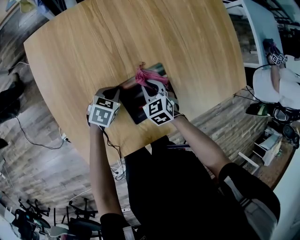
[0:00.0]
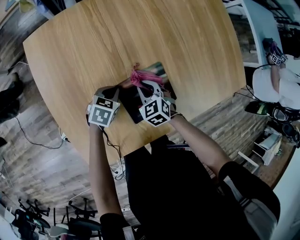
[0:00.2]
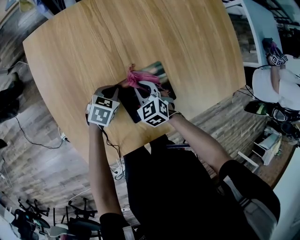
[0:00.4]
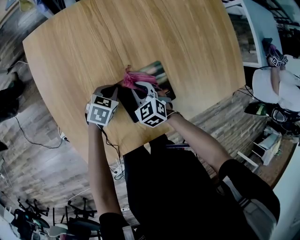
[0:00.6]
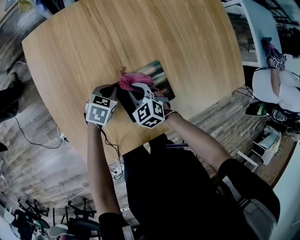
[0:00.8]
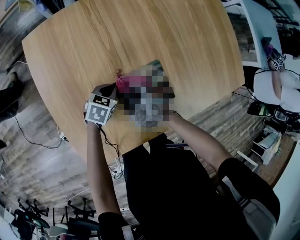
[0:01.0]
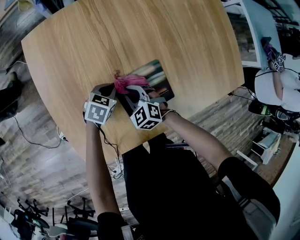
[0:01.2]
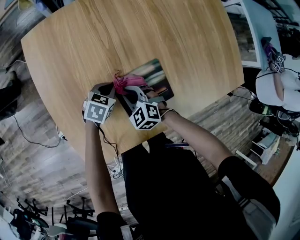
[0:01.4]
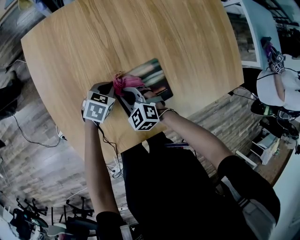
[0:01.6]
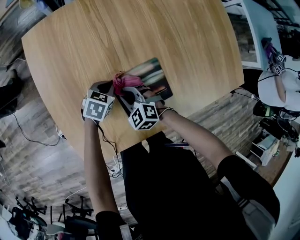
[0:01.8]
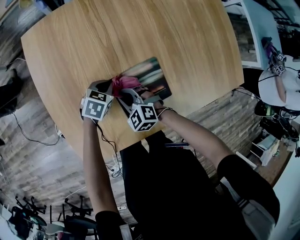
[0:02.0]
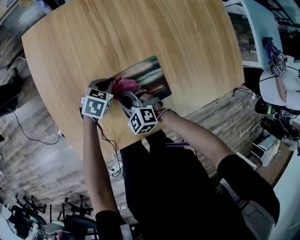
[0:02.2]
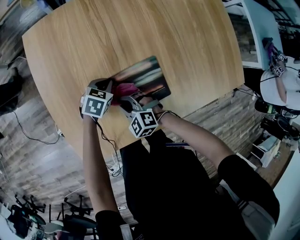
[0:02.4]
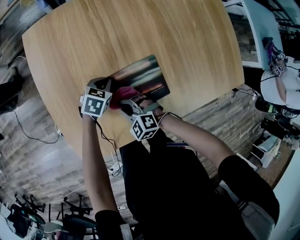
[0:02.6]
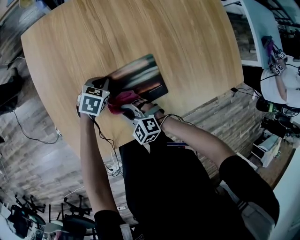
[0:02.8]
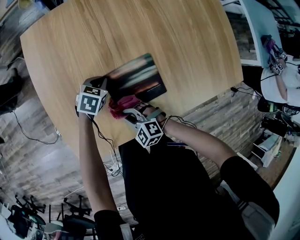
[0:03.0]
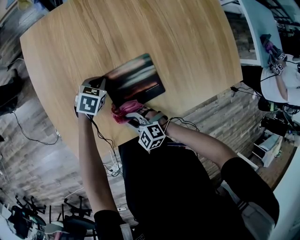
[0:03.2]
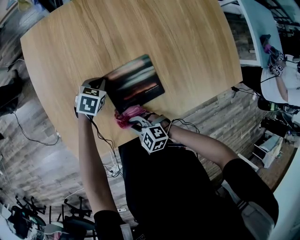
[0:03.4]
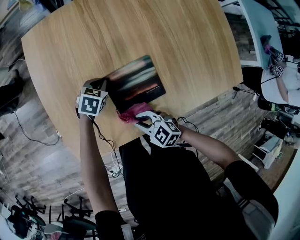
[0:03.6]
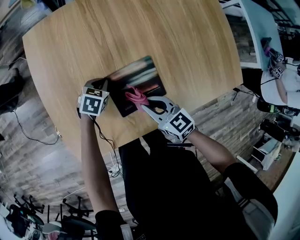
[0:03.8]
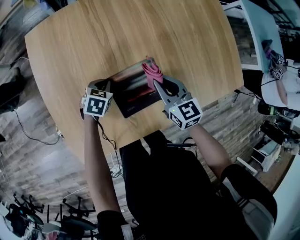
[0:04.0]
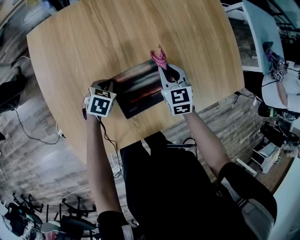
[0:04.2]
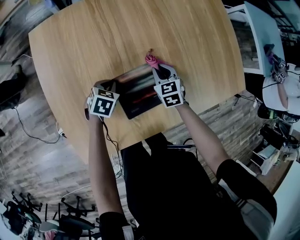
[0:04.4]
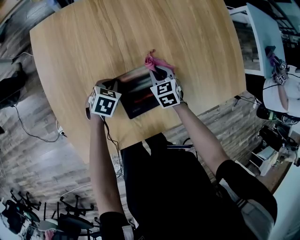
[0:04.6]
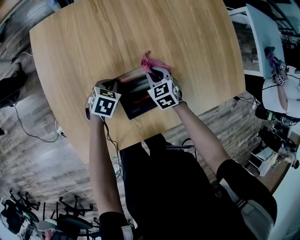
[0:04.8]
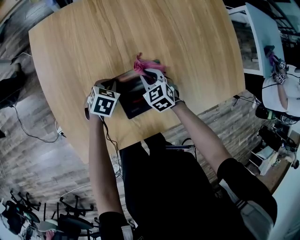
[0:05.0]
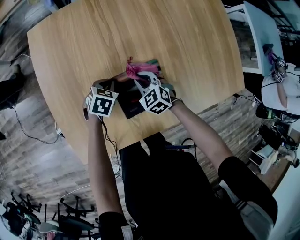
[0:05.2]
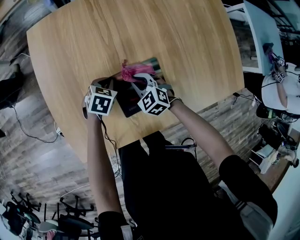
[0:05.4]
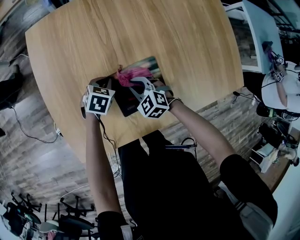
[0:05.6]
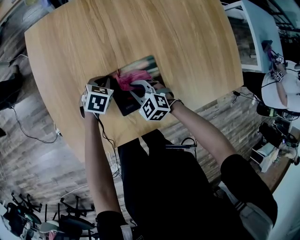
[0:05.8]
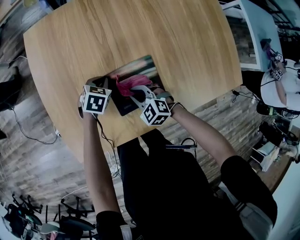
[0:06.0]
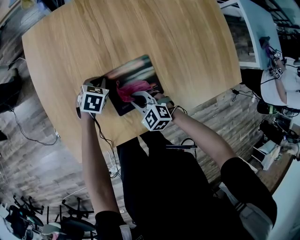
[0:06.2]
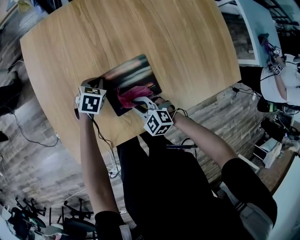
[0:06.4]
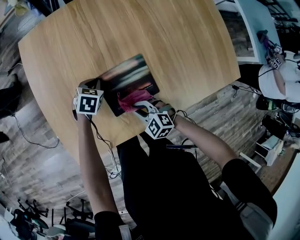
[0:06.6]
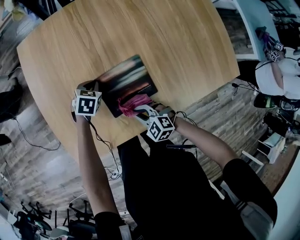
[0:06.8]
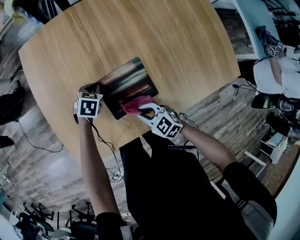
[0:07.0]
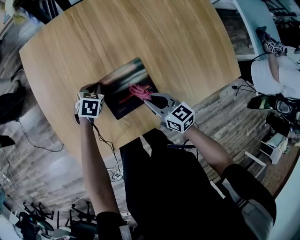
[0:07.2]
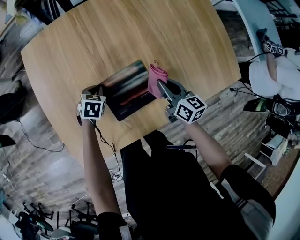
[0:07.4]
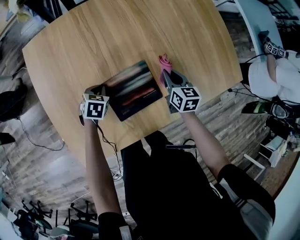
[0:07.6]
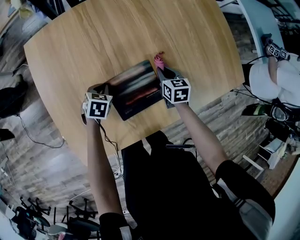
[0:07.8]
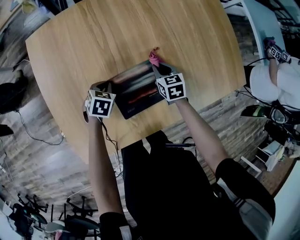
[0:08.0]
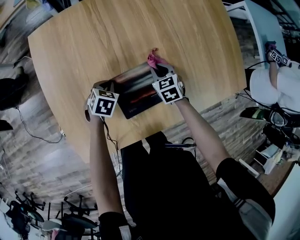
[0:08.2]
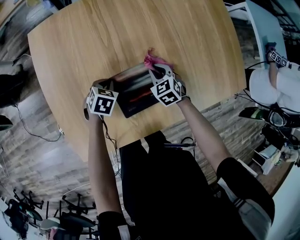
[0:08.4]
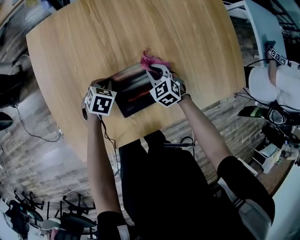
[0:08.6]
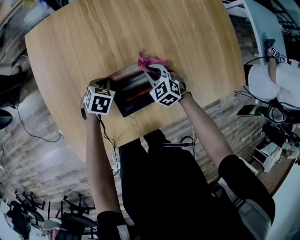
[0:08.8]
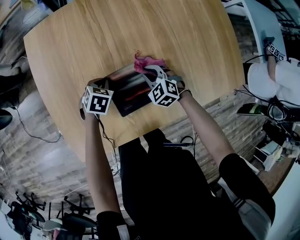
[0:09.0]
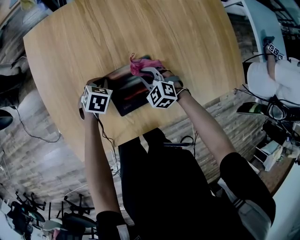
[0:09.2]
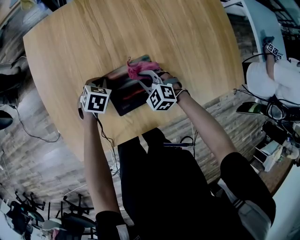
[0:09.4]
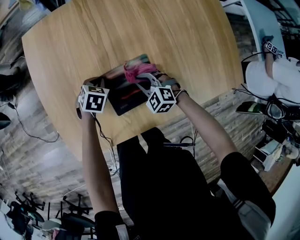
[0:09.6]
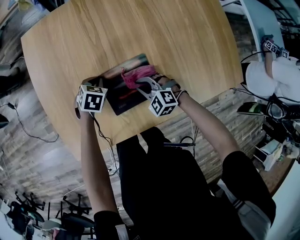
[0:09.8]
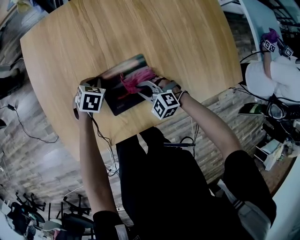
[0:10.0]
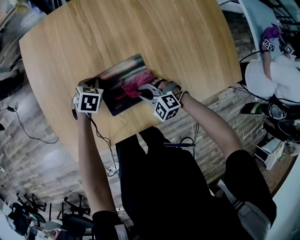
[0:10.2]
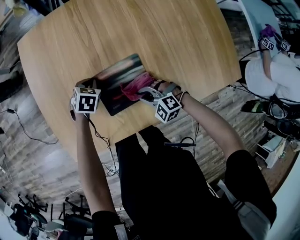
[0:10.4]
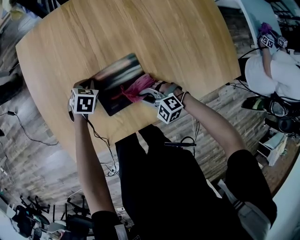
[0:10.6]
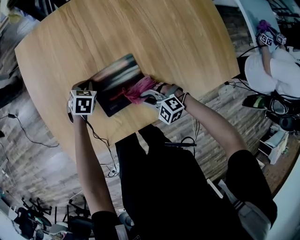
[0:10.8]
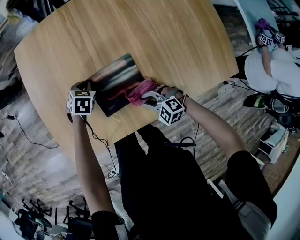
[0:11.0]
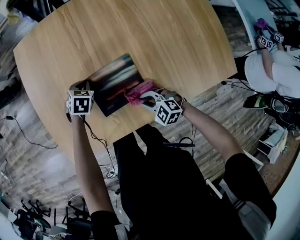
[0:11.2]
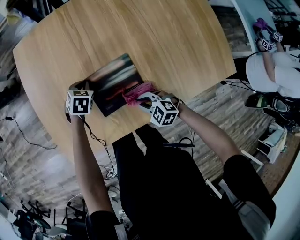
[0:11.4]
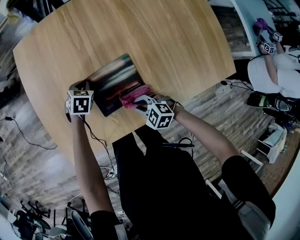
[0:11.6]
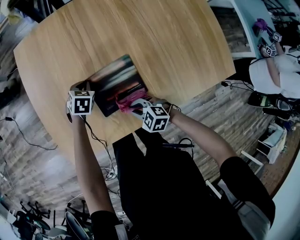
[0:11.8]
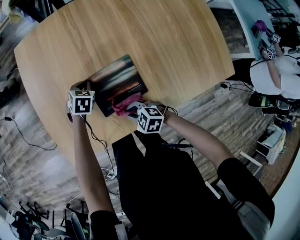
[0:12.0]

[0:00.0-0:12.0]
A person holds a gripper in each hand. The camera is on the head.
0.0 to 1.6 s: The right gripper heads to the left and backward, covering some 10 cm, and swivels roughly 30 degrees.
1.6 to 3.0 s: The right gripper moves backward, roughly 15 cm.
3.0 to 4.4 s: The right gripper travels upward and back again, about 15 cm each way, and swivels approximately 50 degrees.
4.4 to 6.0 s: The right gripper is displaced backward and to the left by roughly 15 cm, and swivels approximately 40 degrees.
6.0 to 7.6 s: The right gripper changes place by approximately 25 cm, and rotates around the line of its fingers by about 60 degrees, clockwise from behind.
7.6 to 9.0 s: The right gripper travels to the left and downward by about 15 cm, and rotates around the line of its fingers by approximately 60 degrees, counterclockwise from behind.
9.0 to 10.4 s: The right gripper travels backward by roughly 15 cm, and turns by approximately 30 degrees.
10.4 to 12.0 s: The right gripper moves to the left, roughly 5 cm, and rotates about 30 degrees.

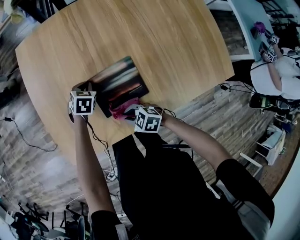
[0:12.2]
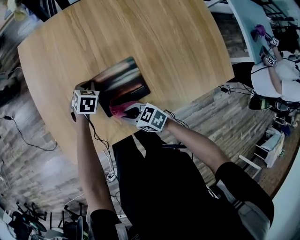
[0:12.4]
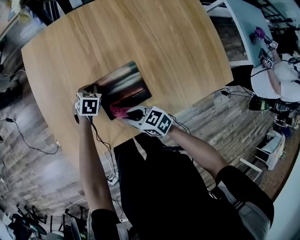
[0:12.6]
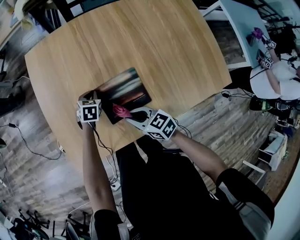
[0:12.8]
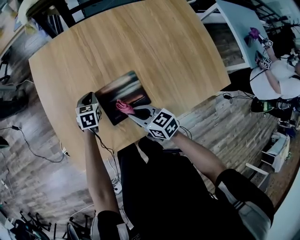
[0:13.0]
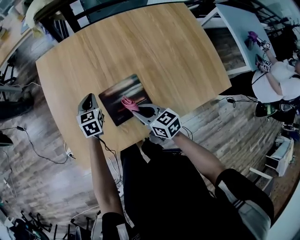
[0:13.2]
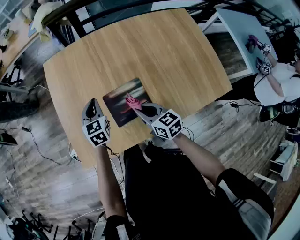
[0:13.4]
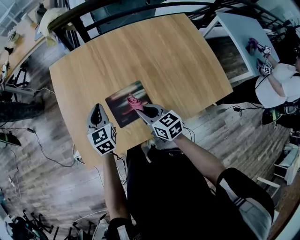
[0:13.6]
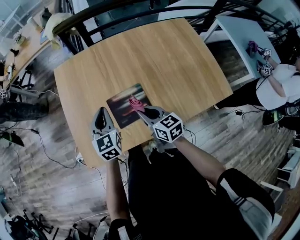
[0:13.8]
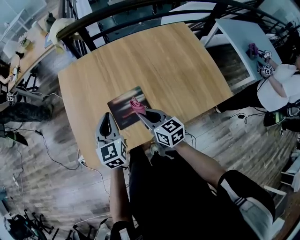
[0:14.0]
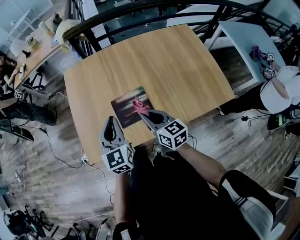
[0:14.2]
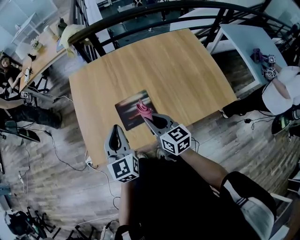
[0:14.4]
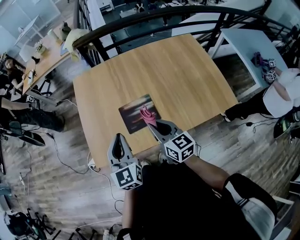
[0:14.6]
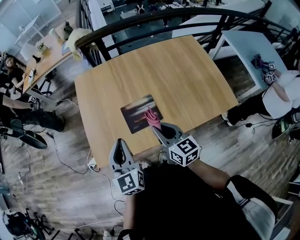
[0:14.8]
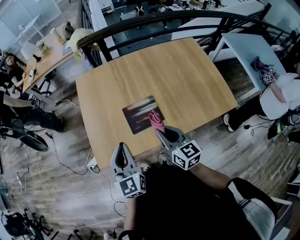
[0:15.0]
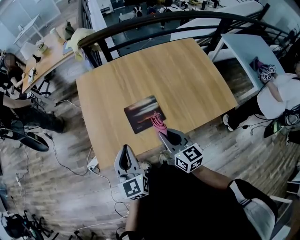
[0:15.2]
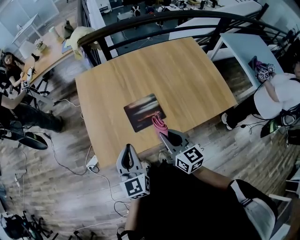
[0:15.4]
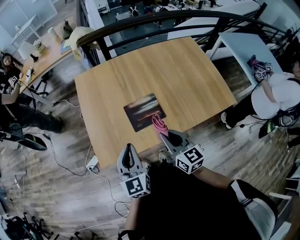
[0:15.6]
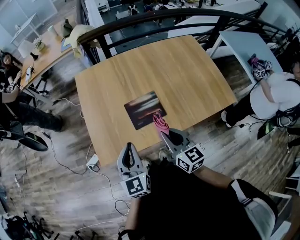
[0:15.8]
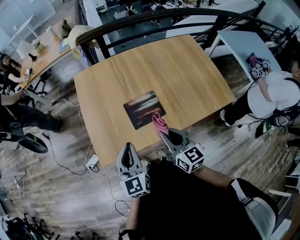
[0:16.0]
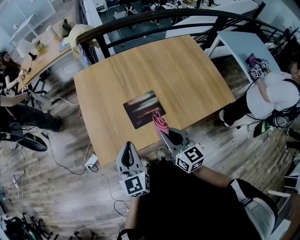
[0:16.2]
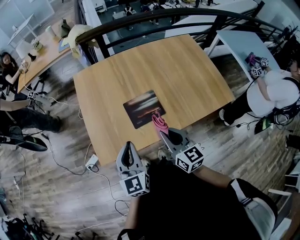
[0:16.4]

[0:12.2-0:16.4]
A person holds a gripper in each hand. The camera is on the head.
12.2 to 13.6 s: The left gripper moves upward, about 25 cm, and tilts its fingers approximately 40 degrees upward; the right gripper travels upward and to the right by roughly 20 cm, and swivels some 50 degrees.
13.6 to 15.0 s: The left gripper goes some 25 cm backward and upward. The right gripper moves upward and backward, some 15 cm.
15.0 to 16.4 s: There are only small adjustments of the grippers.

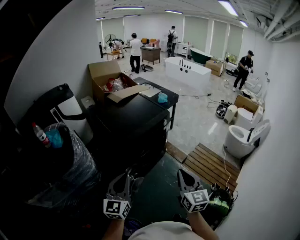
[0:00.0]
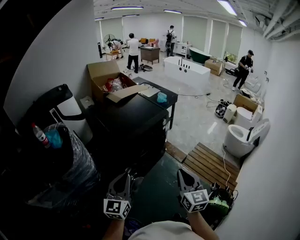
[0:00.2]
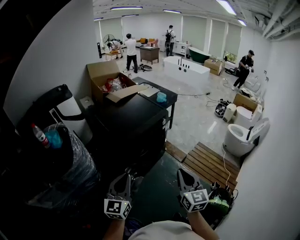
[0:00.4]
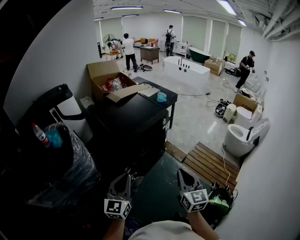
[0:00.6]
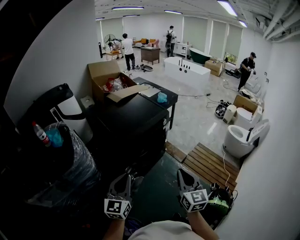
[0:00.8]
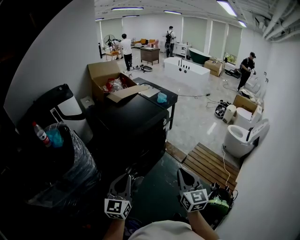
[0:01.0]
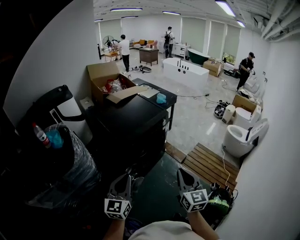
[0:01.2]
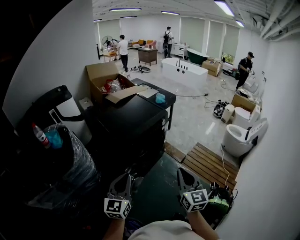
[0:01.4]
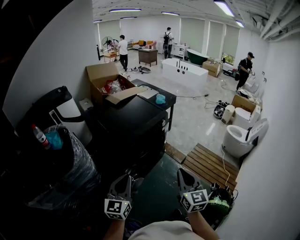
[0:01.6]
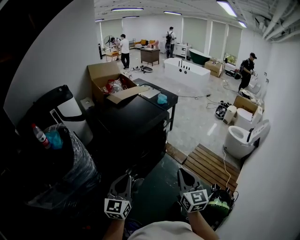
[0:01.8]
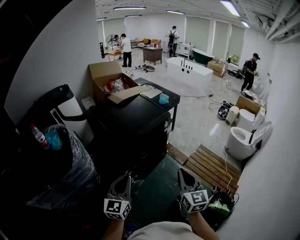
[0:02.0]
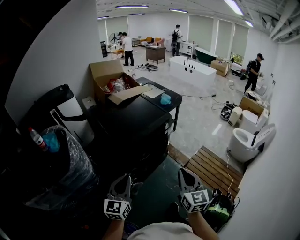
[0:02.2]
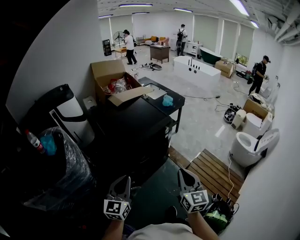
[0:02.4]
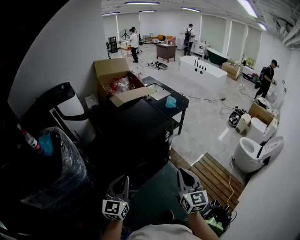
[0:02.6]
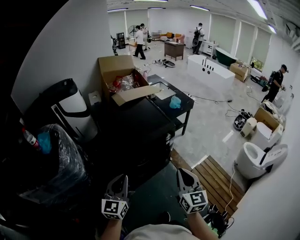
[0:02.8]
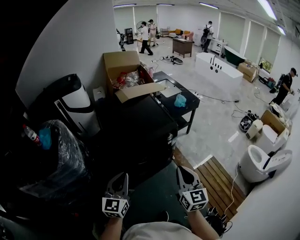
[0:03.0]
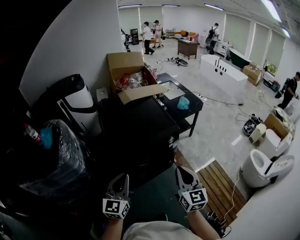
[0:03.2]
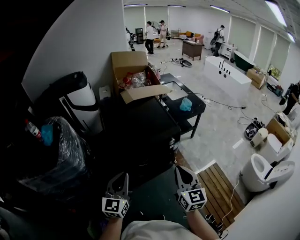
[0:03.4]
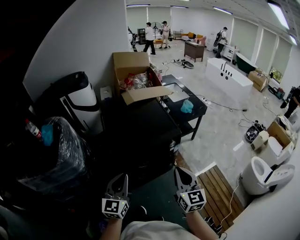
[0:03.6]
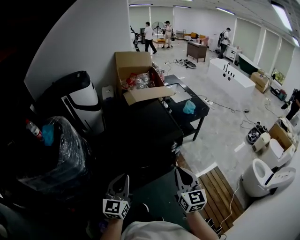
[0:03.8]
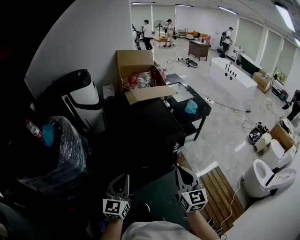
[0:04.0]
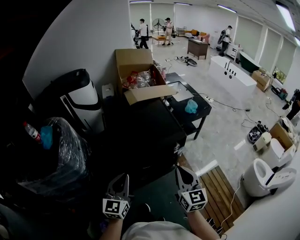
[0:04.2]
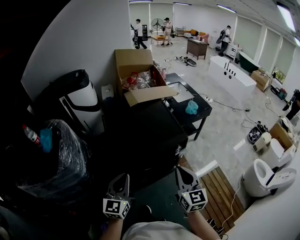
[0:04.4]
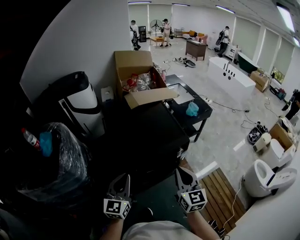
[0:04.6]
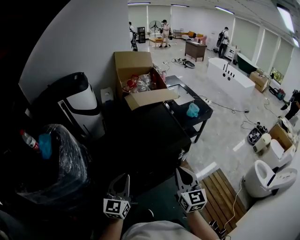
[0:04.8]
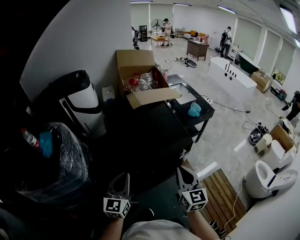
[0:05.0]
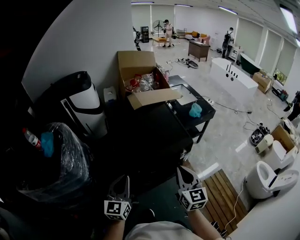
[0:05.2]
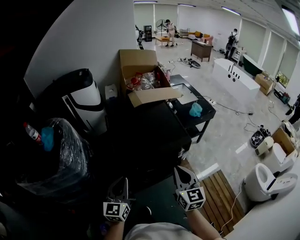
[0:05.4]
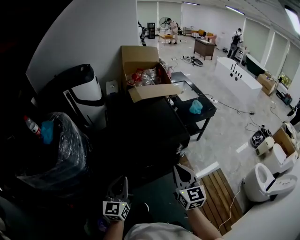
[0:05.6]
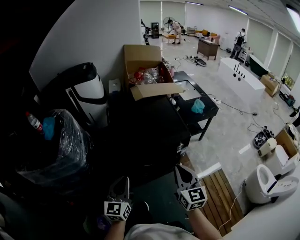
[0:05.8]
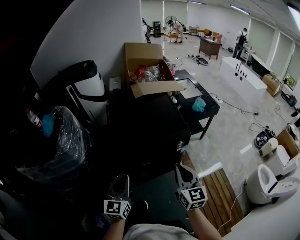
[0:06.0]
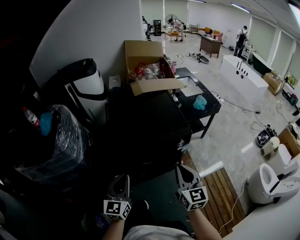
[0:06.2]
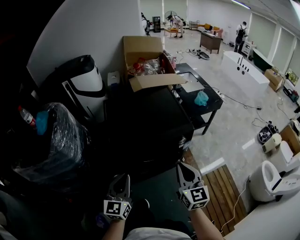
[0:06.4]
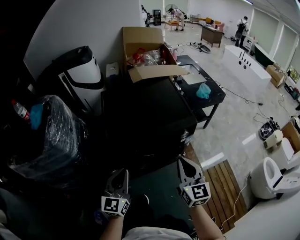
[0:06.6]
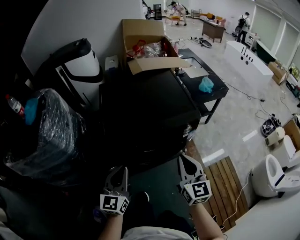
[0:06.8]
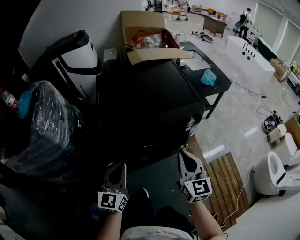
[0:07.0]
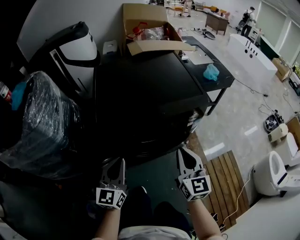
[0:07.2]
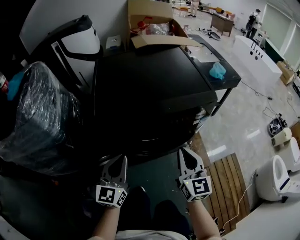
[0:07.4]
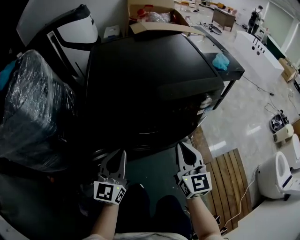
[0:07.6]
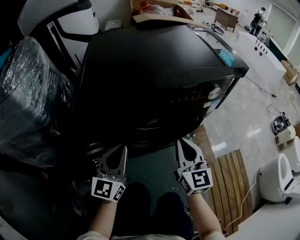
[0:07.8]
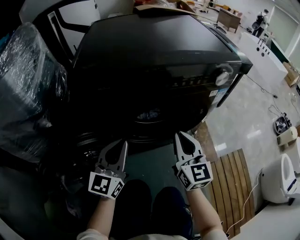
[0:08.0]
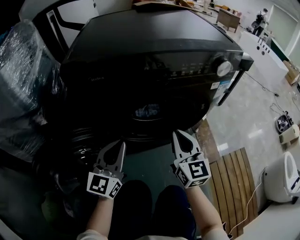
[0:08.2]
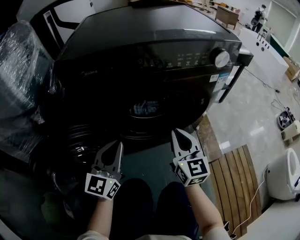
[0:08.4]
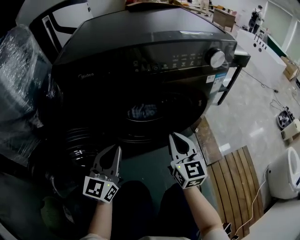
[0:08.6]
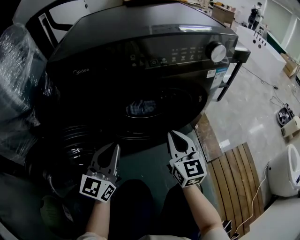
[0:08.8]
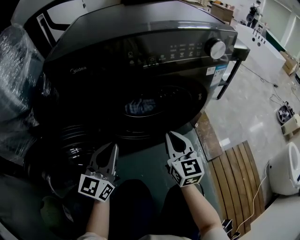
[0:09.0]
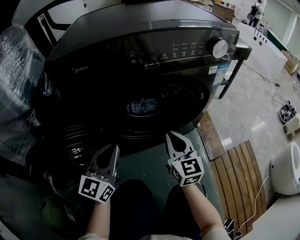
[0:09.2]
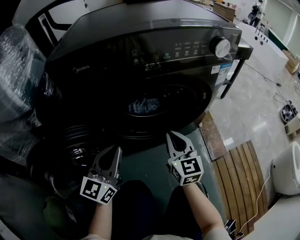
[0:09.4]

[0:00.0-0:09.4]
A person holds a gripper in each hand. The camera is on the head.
0.0 to 1.6 s: The grippers move only a little.
1.6 to 3.2 s: Both grippers travel together forward and to the right, roughly 30 cm. The left gripper swivels roughly 20 degrees. Meanwhile the right gripper turns by approximately 20 degrees.
3.2 to 4.8 s: The two grippers go approximately 15 cm forward and to the left.
4.8 to 6.2 s: The left gripper is displaced backward and downward by some 10 cm. The right gripper goes roughly 5 cm downward.
6.2 to 7.8 s: Both grippers move downward, roughly 35 cm.
7.8 to 9.4 s: Both grippers move downward, approximately 15 cm.
